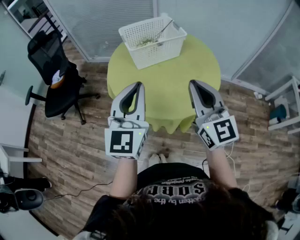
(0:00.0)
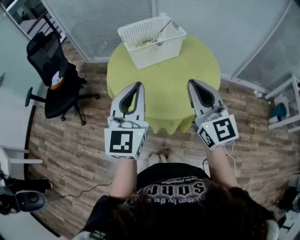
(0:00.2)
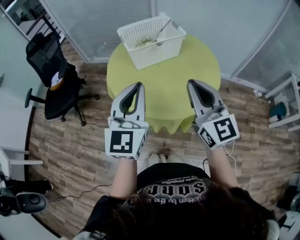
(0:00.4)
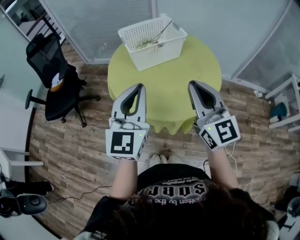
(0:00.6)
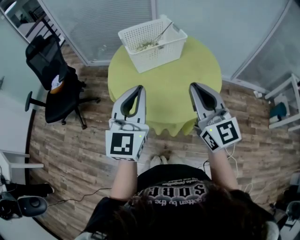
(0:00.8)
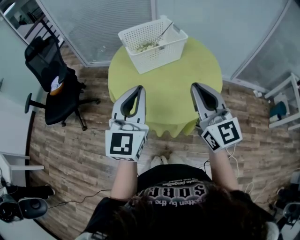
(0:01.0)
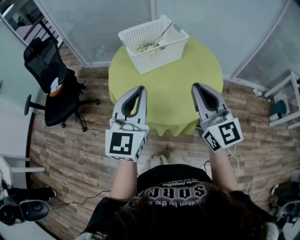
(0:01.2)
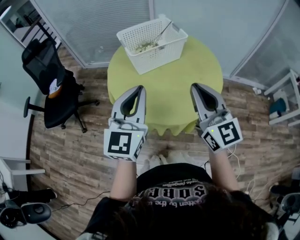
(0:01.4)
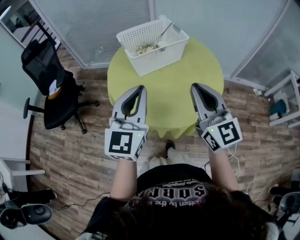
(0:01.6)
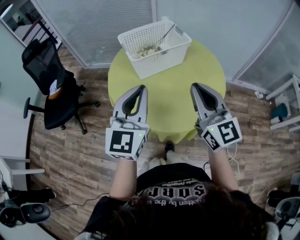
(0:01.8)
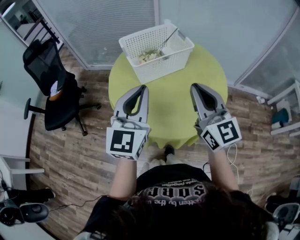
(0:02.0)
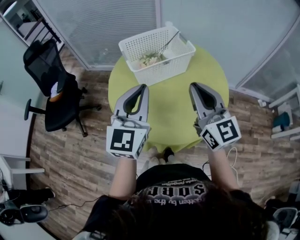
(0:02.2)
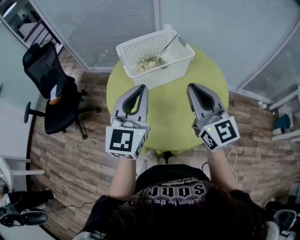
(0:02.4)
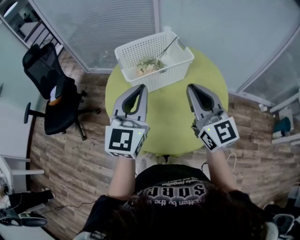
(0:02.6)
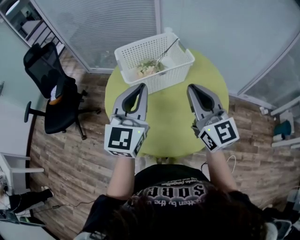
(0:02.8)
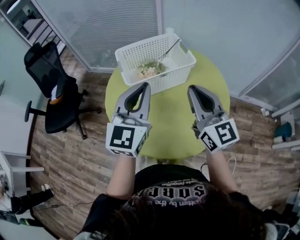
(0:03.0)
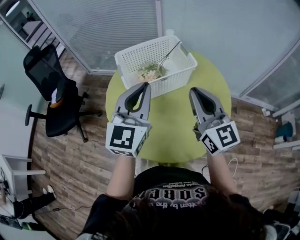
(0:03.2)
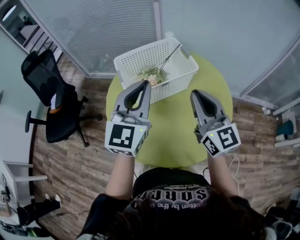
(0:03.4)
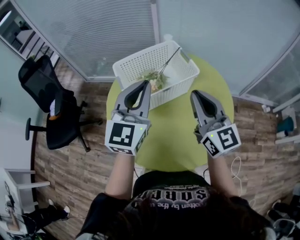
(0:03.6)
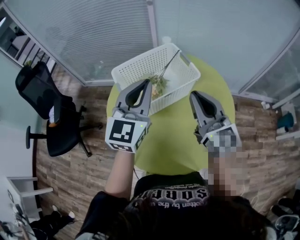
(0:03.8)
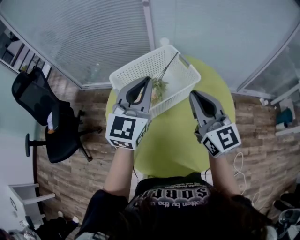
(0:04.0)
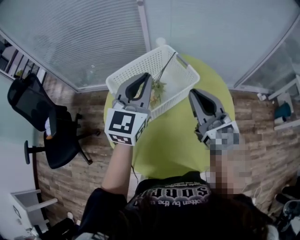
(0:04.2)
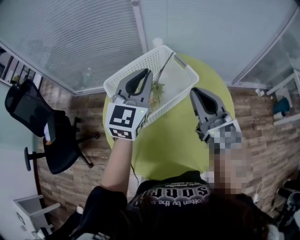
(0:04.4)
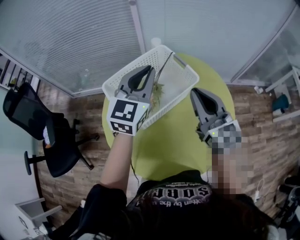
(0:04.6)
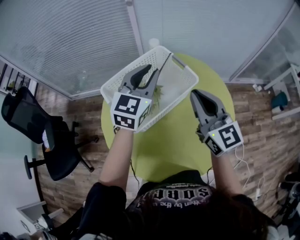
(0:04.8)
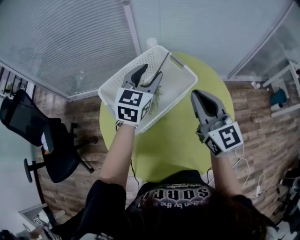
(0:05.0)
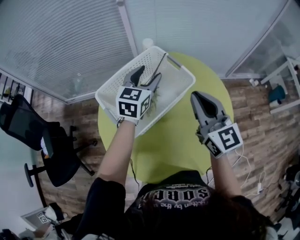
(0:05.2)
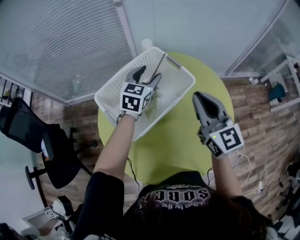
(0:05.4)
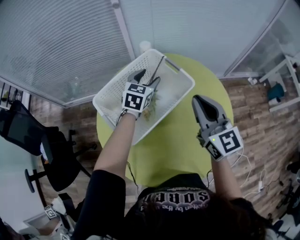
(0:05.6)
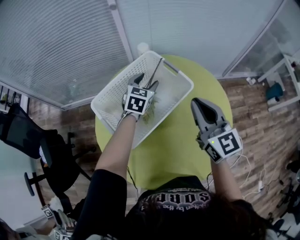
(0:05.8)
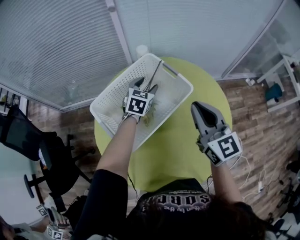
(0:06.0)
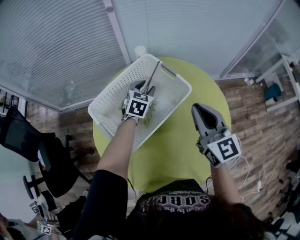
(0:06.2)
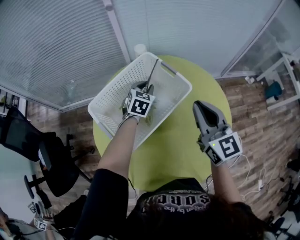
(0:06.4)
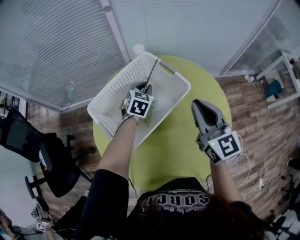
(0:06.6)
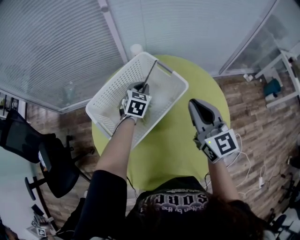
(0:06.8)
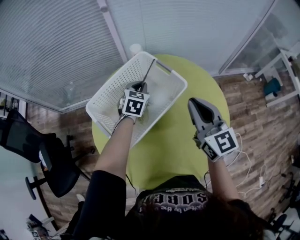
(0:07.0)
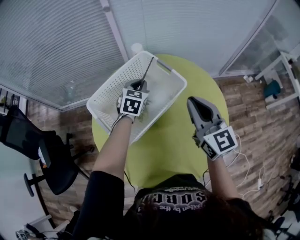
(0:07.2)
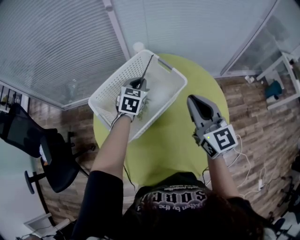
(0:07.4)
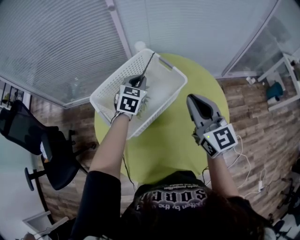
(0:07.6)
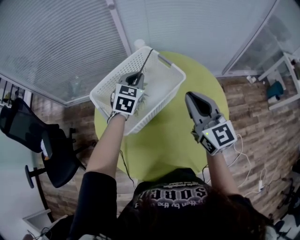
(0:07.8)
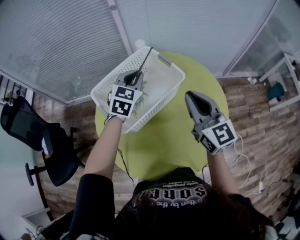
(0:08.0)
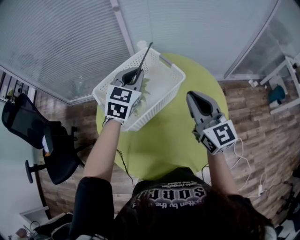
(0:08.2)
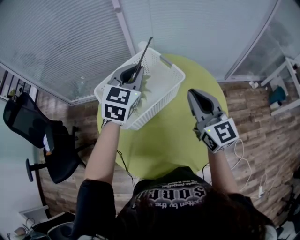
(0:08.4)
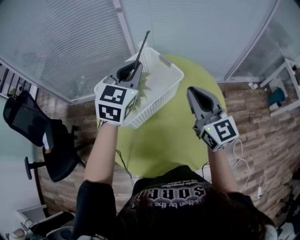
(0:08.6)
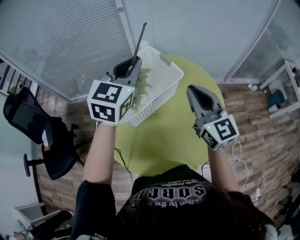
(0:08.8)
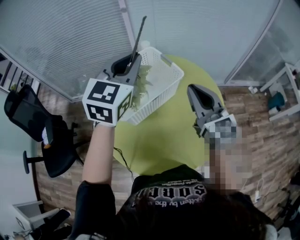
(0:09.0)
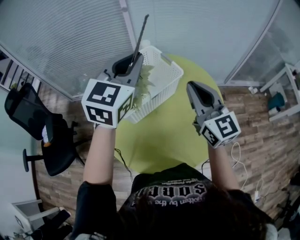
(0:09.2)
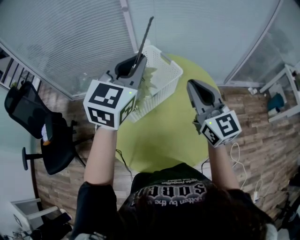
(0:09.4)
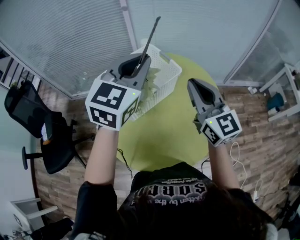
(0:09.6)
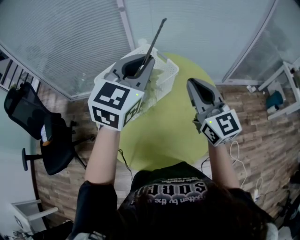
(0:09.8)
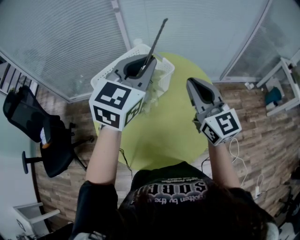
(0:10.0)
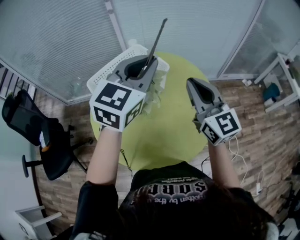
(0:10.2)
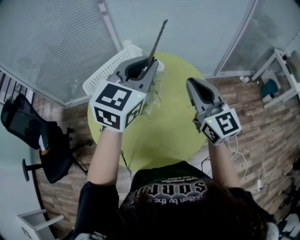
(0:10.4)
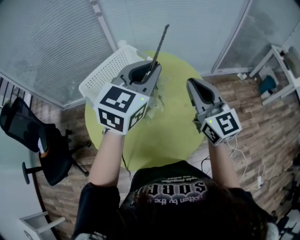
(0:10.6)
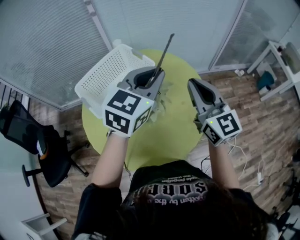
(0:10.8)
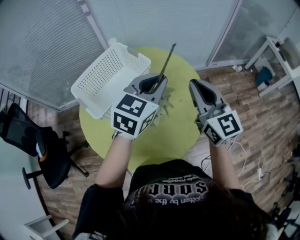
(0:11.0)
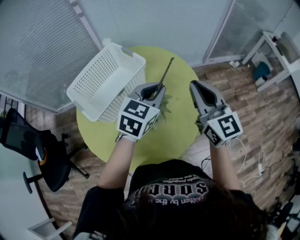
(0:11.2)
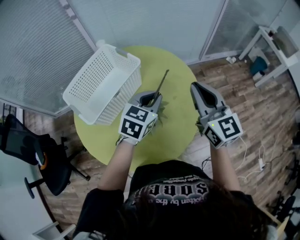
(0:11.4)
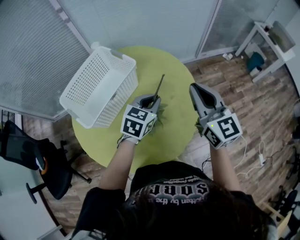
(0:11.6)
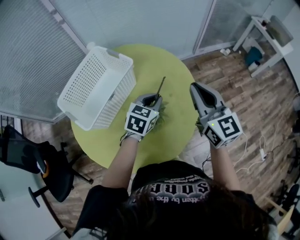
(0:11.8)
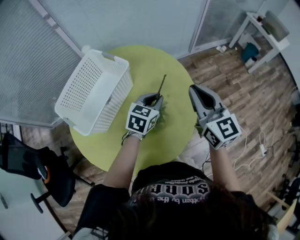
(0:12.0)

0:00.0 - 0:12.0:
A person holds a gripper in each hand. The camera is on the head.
0:00.0 - 0:01.6: The left gripper heads forward, covering approximately 5 cm.
0:01.6 - 0:03.0: The two grippers go roughly 15 cm forward.
0:03.0 - 0:04.4: The right gripper travels forward by roughly 10 cm; the left gripper heads forward, covering some 20 cm.
0:04.4 - 0:06.0: The right gripper shifts by approximately 5 cm; the left gripper is displaced downward and forward by roughly 25 cm, changes its angle by about 30 degrees, and opens up.
0:06.0 - 0:07.6: The left gripper shifts approximately 5 cm upward, and closes.
0:07.6 - 0:09.0: The right gripper travels upward by about 5 cm; the left gripper shifts some 30 cm upward and backward, and turns by some 20 degrees.
0:09.0 - 0:10.4: The right gripper is displaced to the right by roughly 5 cm. Meanwhile the left gripper is displaced to the right and backward by roughly 15 cm.
0:10.4 - 0:12.0: The left gripper shifts about 30 cm downward and to the right, and changes its angle by roughly 30 degrees; the right gripper travels to the right and downward by about 15 cm.

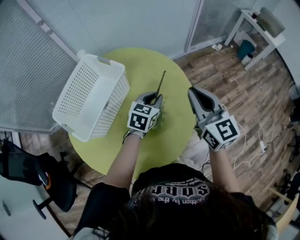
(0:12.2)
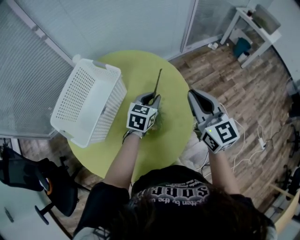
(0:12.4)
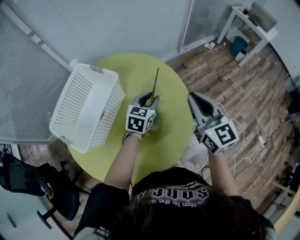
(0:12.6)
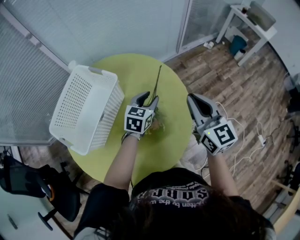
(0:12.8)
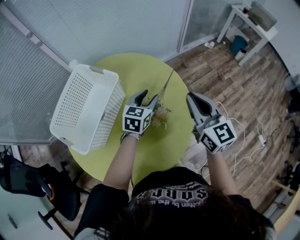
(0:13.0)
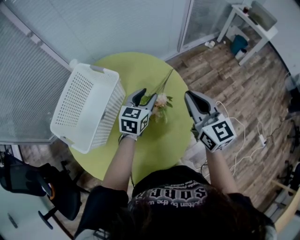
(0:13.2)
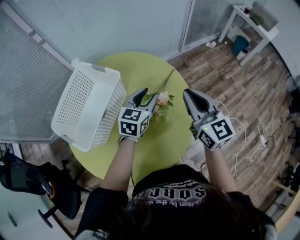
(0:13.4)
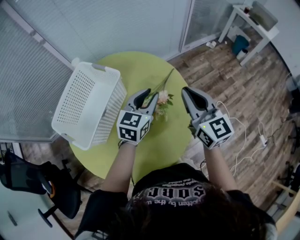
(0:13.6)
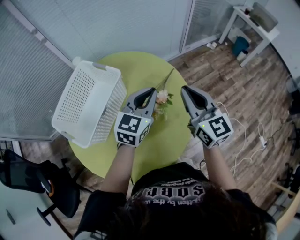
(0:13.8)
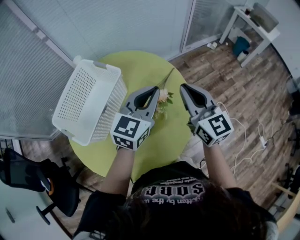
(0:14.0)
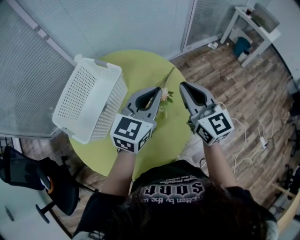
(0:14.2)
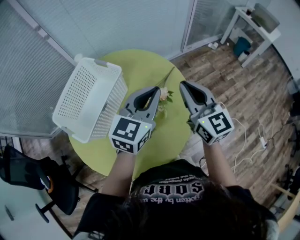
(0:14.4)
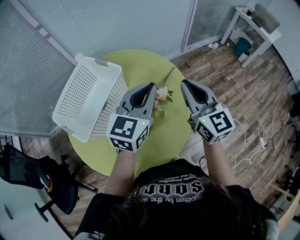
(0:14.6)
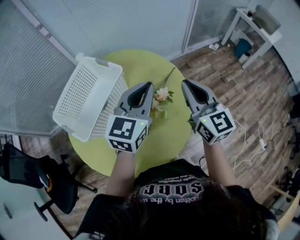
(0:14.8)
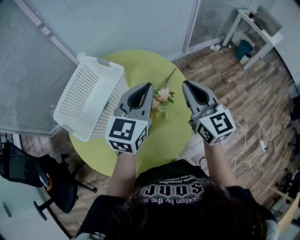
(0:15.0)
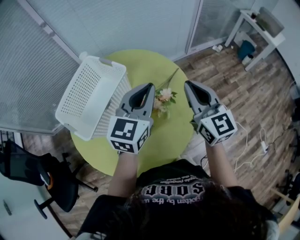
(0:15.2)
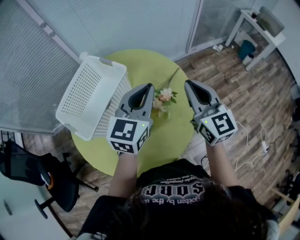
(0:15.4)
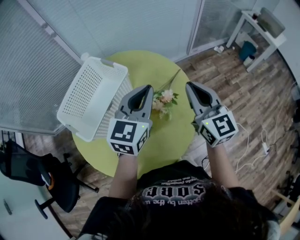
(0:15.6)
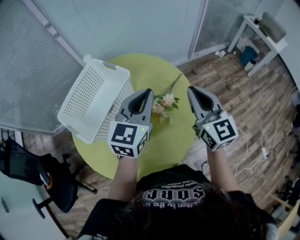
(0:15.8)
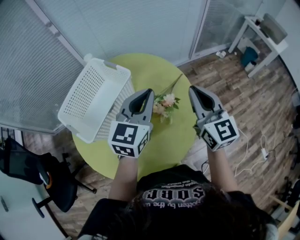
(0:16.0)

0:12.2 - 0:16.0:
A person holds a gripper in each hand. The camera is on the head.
0:12.2 - 0:13.4: The left gripper opens up.
0:13.4 - 0:14.8: The left gripper moves upward, about 15 cm, and closes up.
0:14.8 - 0:16.0: The grippers stay close to where they were, moving slightly.

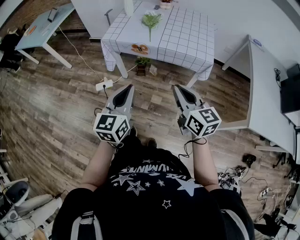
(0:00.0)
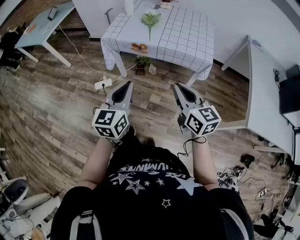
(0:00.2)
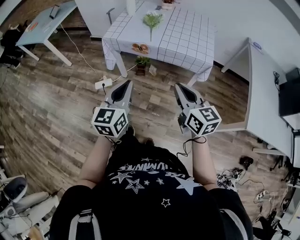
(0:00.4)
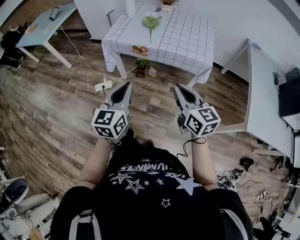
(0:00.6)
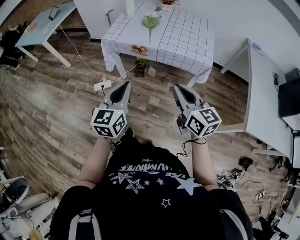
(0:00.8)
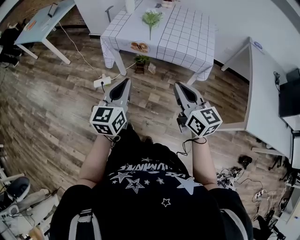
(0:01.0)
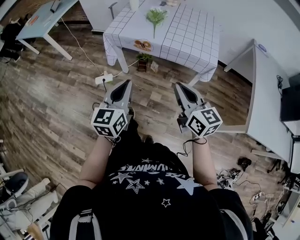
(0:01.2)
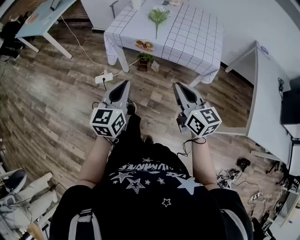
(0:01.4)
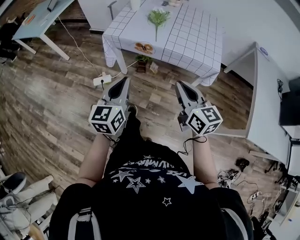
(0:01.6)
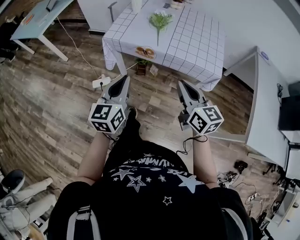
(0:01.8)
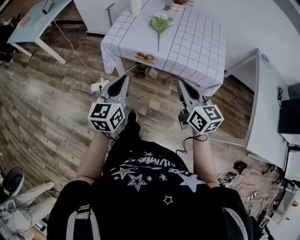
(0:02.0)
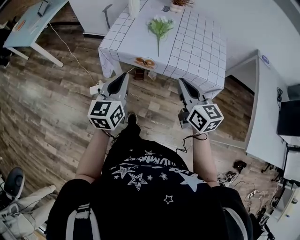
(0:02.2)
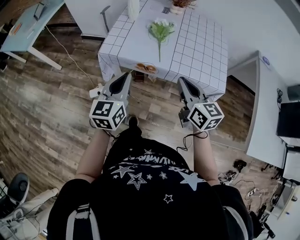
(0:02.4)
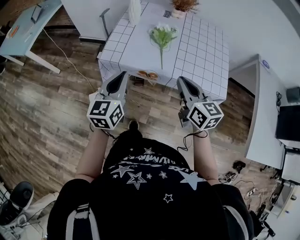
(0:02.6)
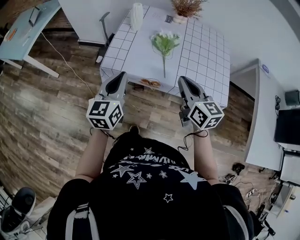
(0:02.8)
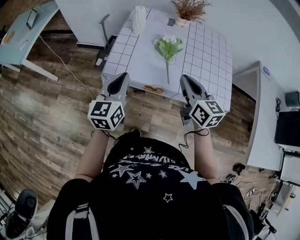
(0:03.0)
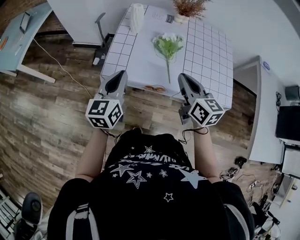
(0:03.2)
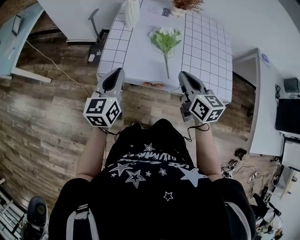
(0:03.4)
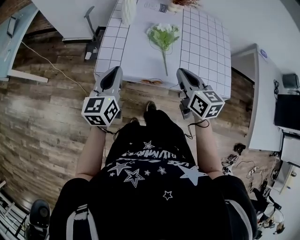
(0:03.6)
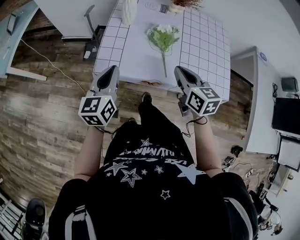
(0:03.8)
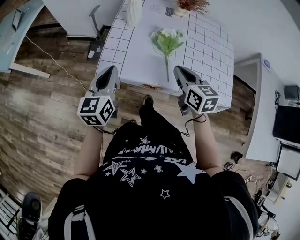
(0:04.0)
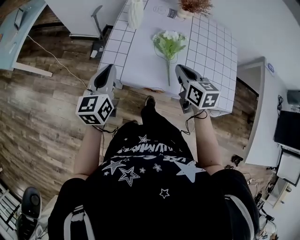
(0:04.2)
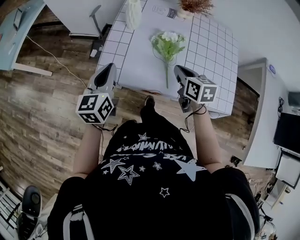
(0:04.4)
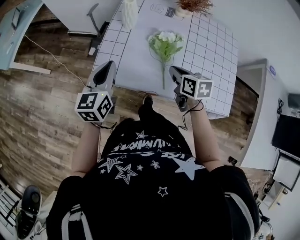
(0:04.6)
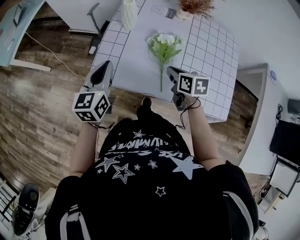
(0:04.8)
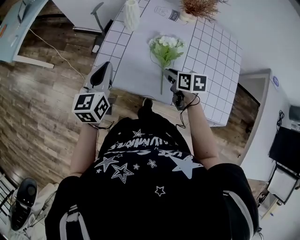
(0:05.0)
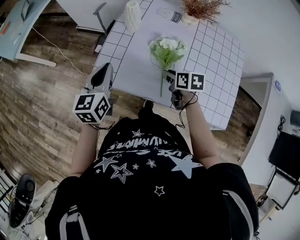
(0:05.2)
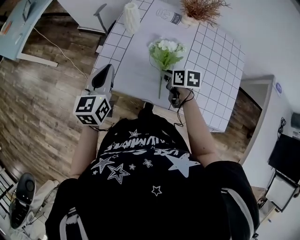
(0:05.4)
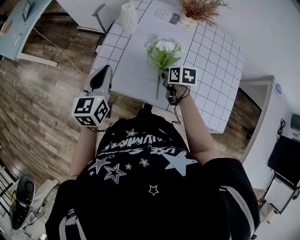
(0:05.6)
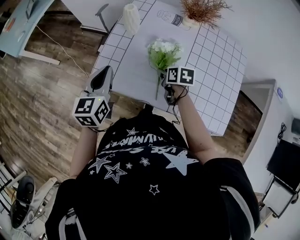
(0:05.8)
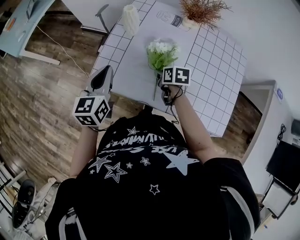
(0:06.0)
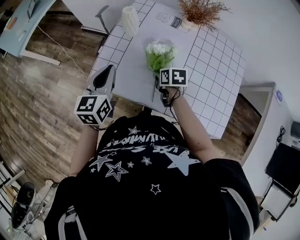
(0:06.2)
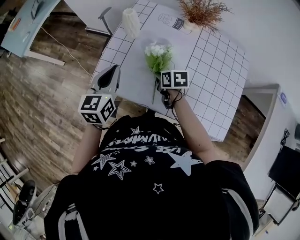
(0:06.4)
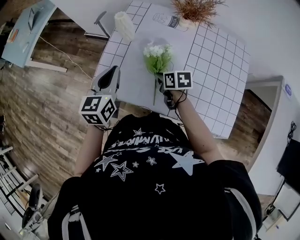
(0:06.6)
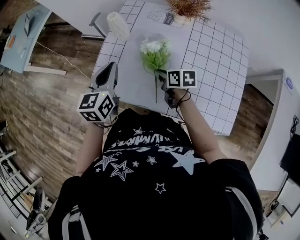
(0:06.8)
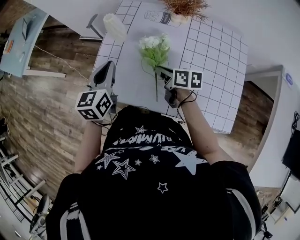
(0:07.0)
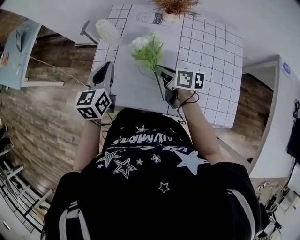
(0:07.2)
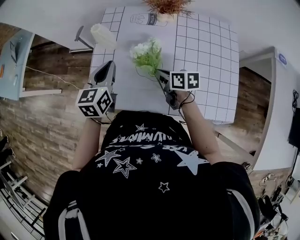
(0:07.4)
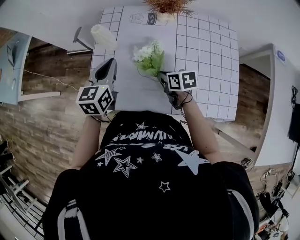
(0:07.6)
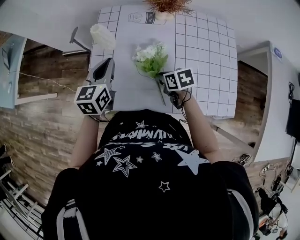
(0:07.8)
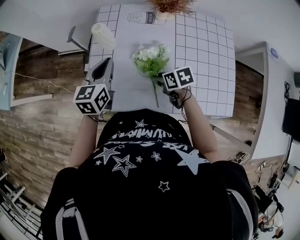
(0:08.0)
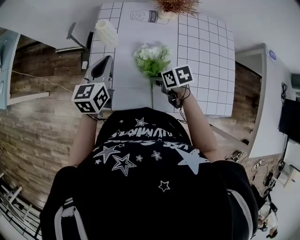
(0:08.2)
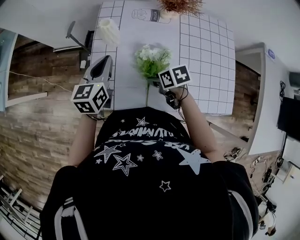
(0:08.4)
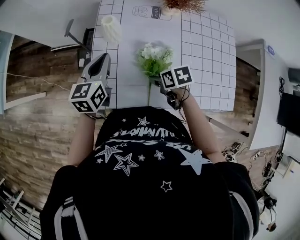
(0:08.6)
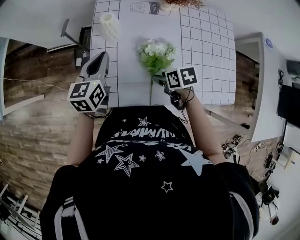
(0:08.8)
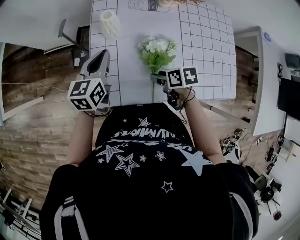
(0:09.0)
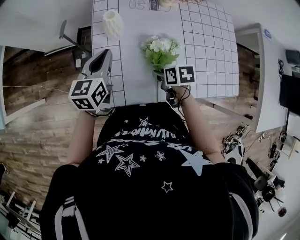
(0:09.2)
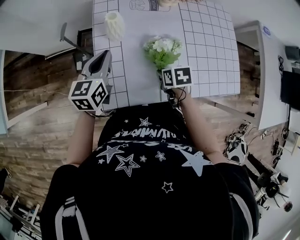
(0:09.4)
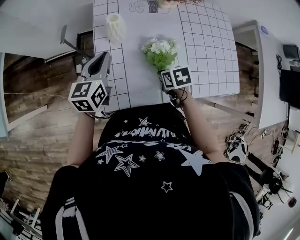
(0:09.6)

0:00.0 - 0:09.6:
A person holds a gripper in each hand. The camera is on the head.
0:00.0 - 0:01.6: Both grippers travel together forward, approximately 10 cm.
0:01.6 - 0:03.2: The two grippers go some 35 cm forward.
0:03.2 - 0:04.8: The left gripper moves forward, some 5 cm; the right gripper shifts about 15 cm downward and forward, and swivels some 30 degrees.
0:04.8 - 0:06.4: The left gripper moves to the right, about 5 cm, while the right gripper is displaced forward and downward by about 10 cm, and opens, then closes once more.
0:06.4 - 0:08.0: The left gripper shifts approximately 10 cm forward.
0:08.0 - 0:09.6: The two grippers go approximately 5 cm to the left. The right gripper changes its angle by some 20 degrees.
